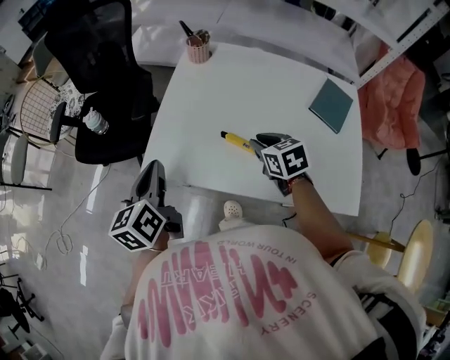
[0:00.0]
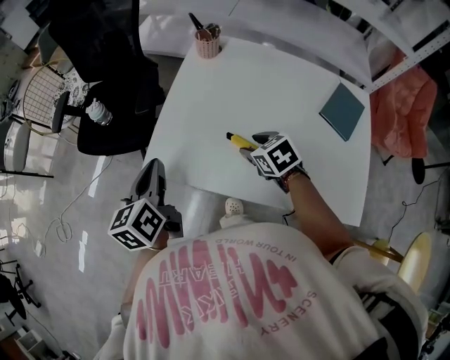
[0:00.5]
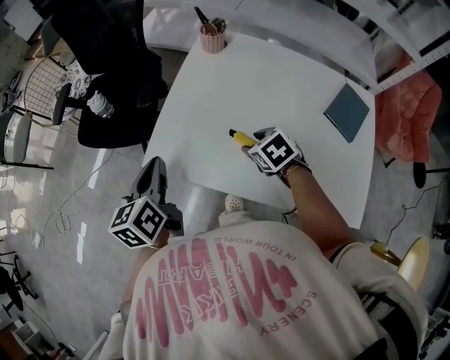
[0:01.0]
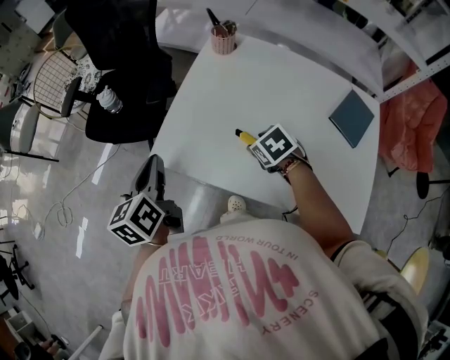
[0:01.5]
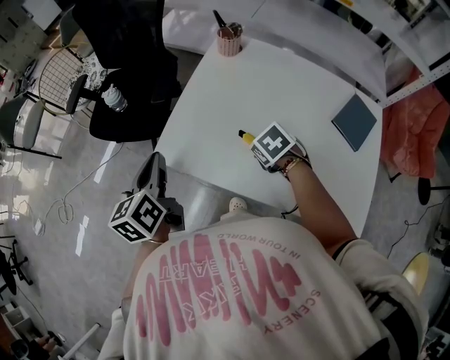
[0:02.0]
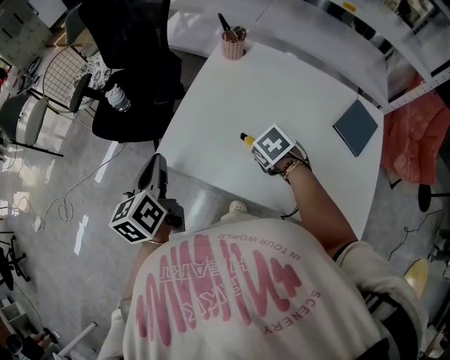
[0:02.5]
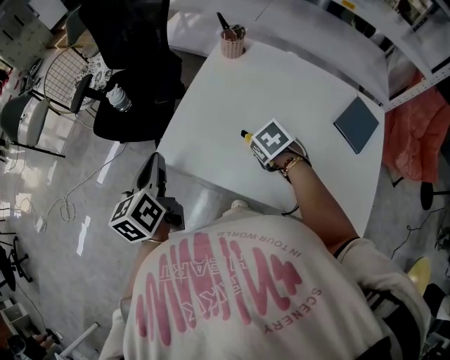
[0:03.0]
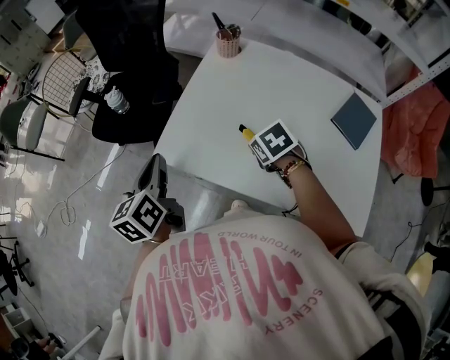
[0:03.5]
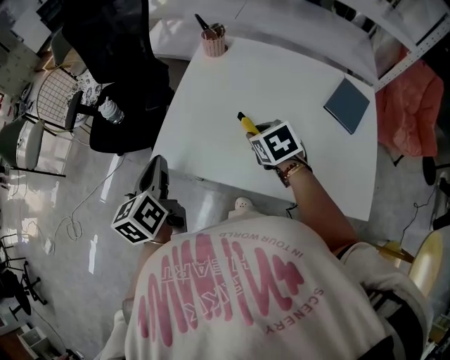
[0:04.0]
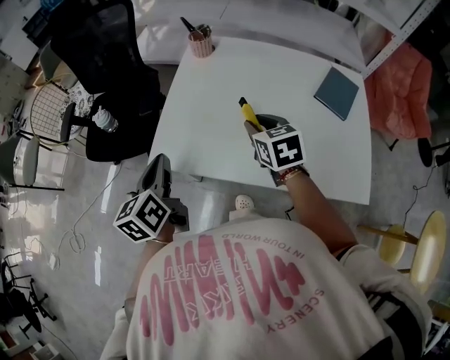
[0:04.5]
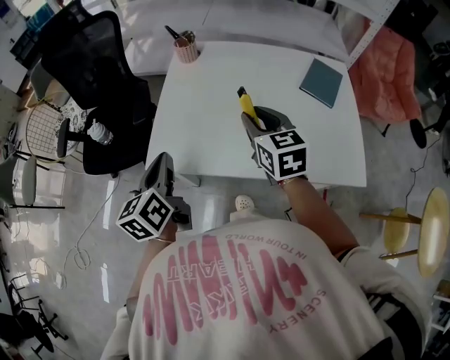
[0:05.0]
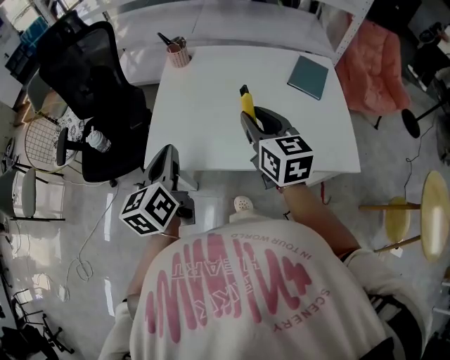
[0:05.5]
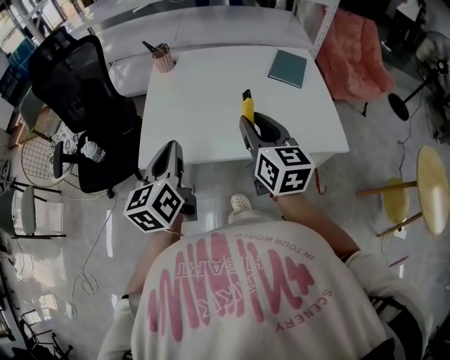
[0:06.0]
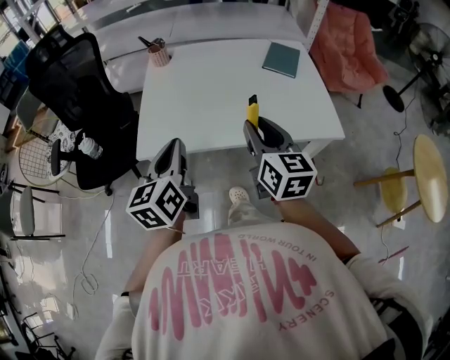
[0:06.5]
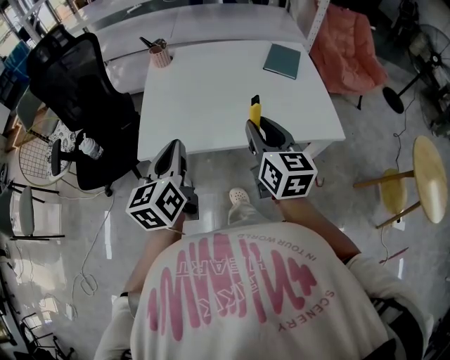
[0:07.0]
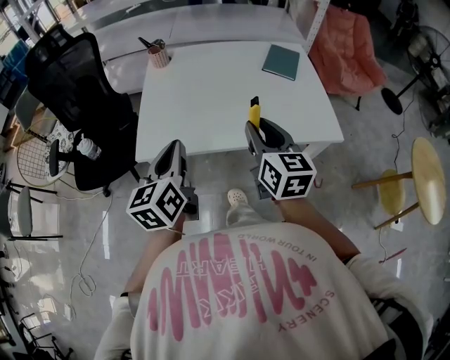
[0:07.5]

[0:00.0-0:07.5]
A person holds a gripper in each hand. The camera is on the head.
0:00.0 to 0:02.0: The right gripper goes roughly 5 cm downward, rotates some 30 degrees, and opens and closes again.
0:02.0 to 0:04.0: The right gripper travels upward by approximately 5 cm, and changes its angle by approximately 20 degrees.
0:04.0 to 0:05.5: The left gripper heads backward and to the right, covering roughly 10 cm, and changes its angle by about 20 degrees; the right gripper shifts about 20 cm upward and backward, and angles its fingers upward, by about 40 degrees.
0:05.5 to 0:07.5: The right gripper moves backward, approximately 15 cm; the left gripper shifts some 10 cm backward.

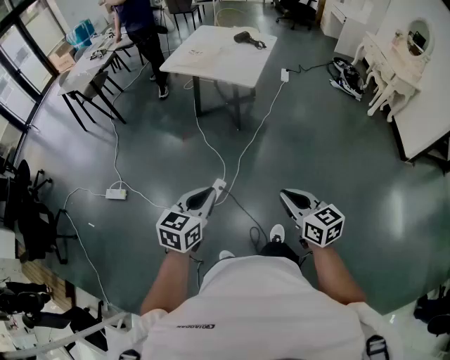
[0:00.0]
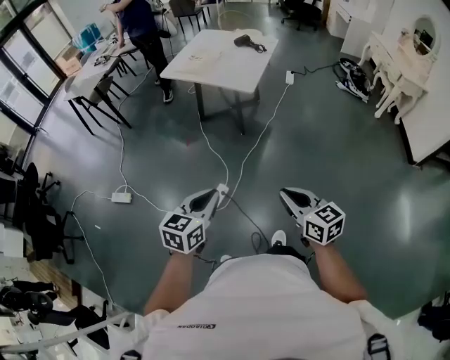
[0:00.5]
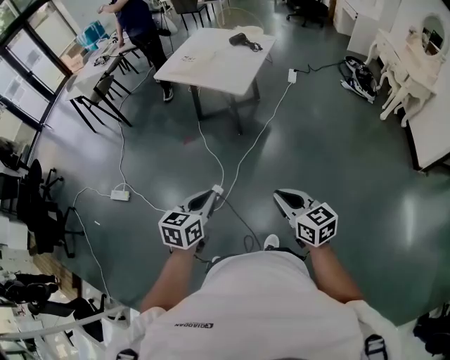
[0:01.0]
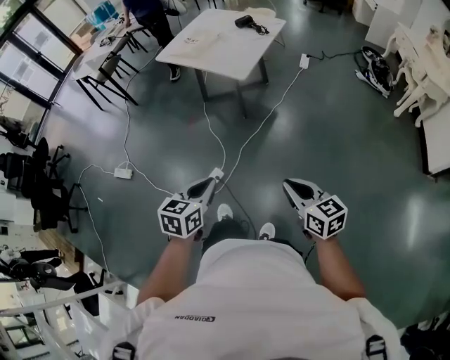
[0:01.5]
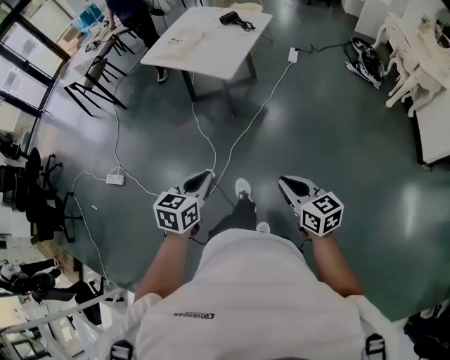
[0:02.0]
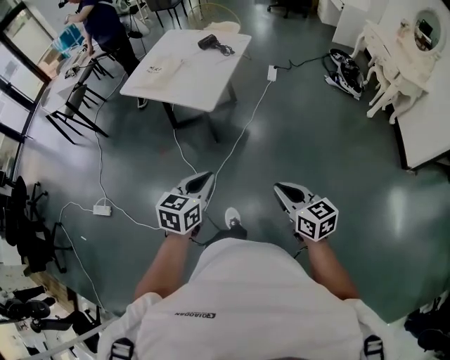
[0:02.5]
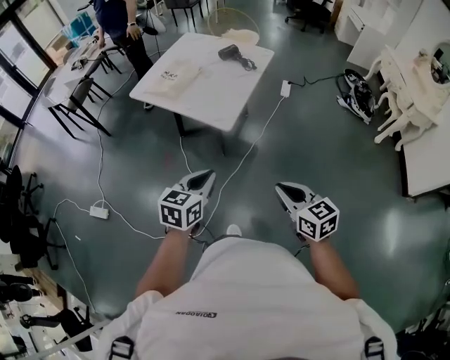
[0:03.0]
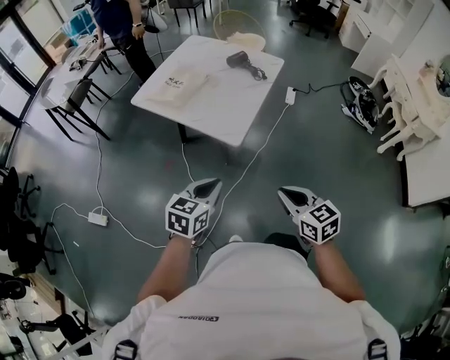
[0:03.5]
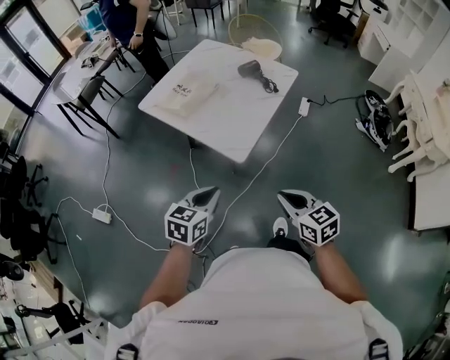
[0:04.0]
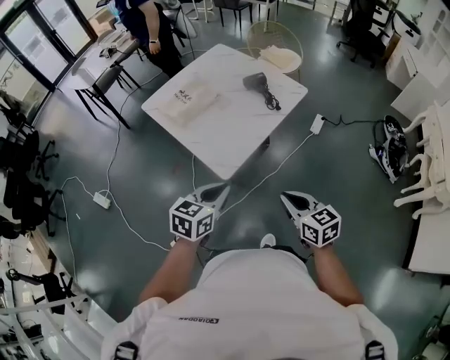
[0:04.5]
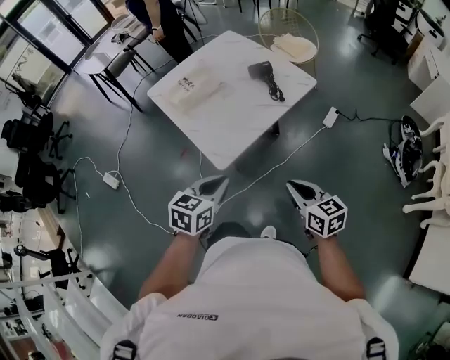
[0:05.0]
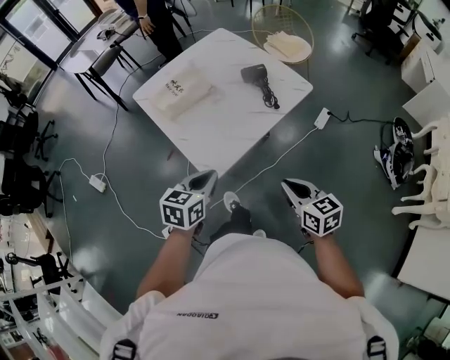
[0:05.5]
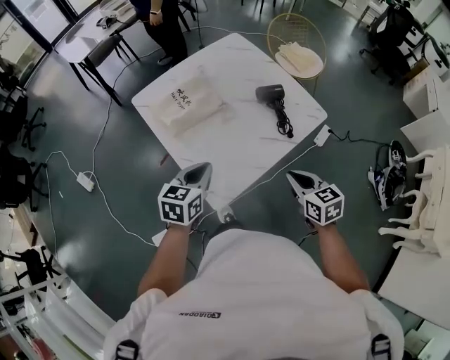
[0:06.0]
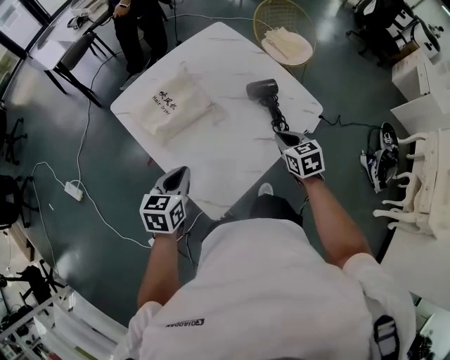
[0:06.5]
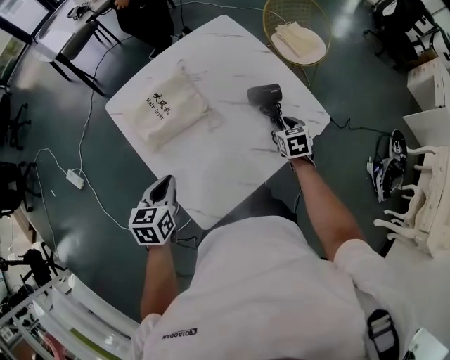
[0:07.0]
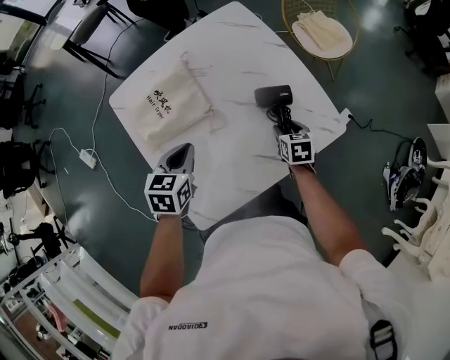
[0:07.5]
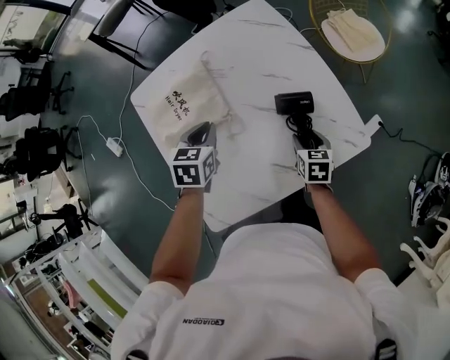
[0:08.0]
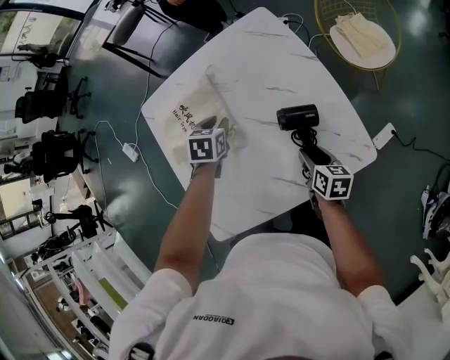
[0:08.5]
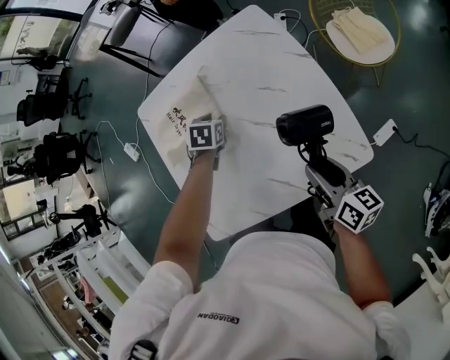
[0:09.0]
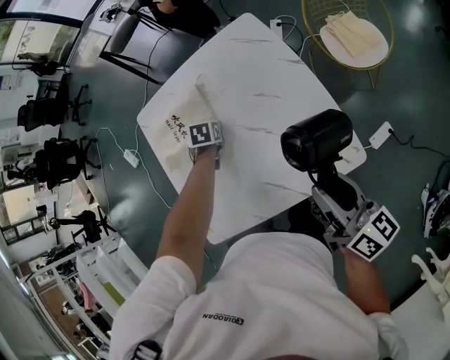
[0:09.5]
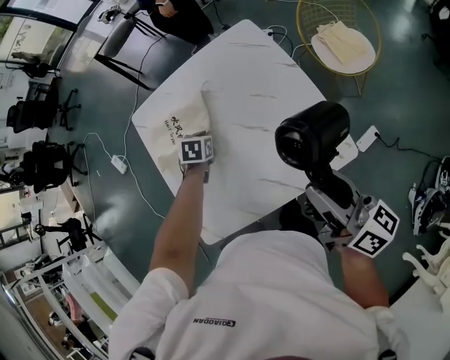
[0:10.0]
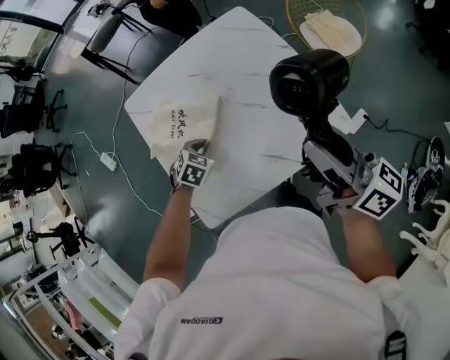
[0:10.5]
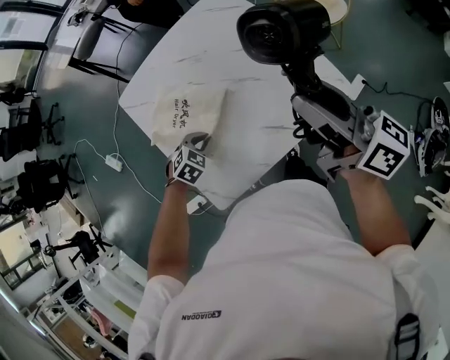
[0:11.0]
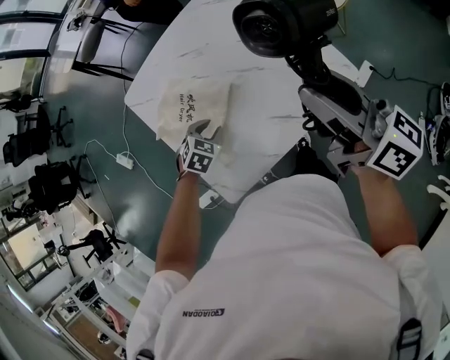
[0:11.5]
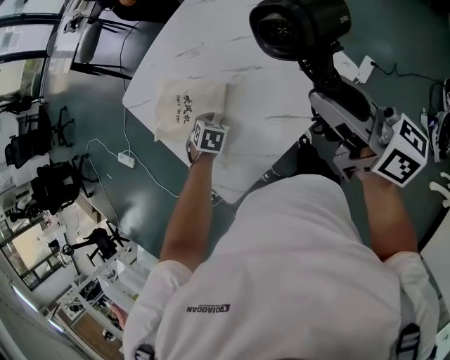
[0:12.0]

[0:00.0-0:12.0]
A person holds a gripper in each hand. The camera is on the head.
0:00.0 to 0:02.0: Both grippers travel together to the right and forward, about 30 cm.
0:02.0 to 0:04.0: Both grippers move forward, roughly 40 cm.
0:04.0 to 0:06.0: The right gripper goes some 40 cm forward and to the right. Meanwhile the left gripper shifts about 30 cm forward, and changes its angle by roughly 20 degrees.
0:06.0 to 0:08.0: The left gripper heads forward, covering about 30 cm, and swivels approximately 30 degrees. The right gripper shifts about 40 cm forward and downward, and opens its fingers.
0:08.0 to 0:10.0: The right gripper moves upward, roughly 30 cm, and tilts its fingers roughly 50 degrees upward, while the left gripper heads downward, covering some 10 cm, and opens and closes again.
0:10.0 to 0:12.0: The left gripper moves backward, about 10 cm, turns by about 30 degrees, and opens up.

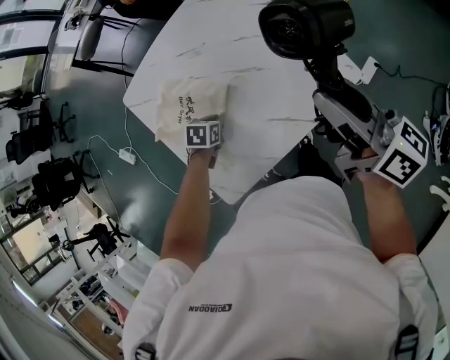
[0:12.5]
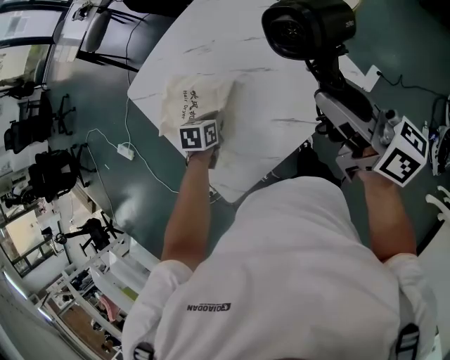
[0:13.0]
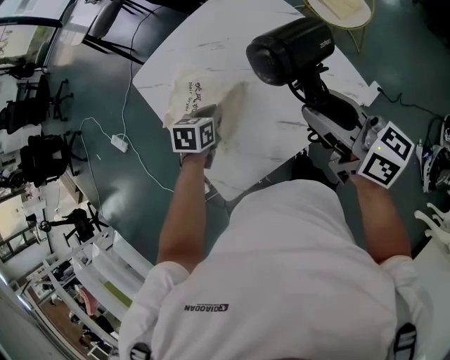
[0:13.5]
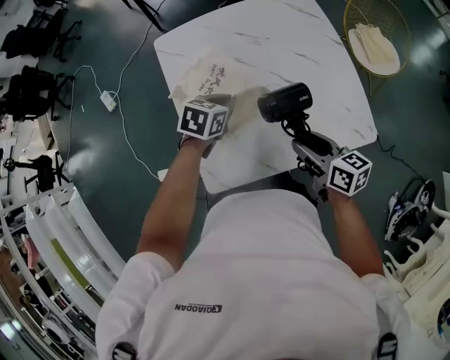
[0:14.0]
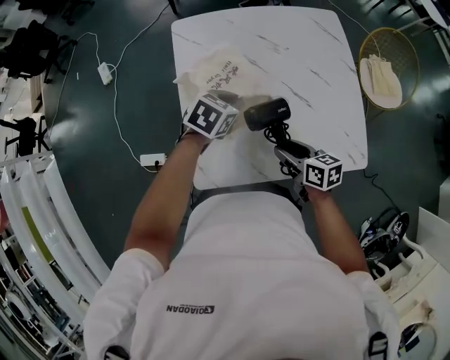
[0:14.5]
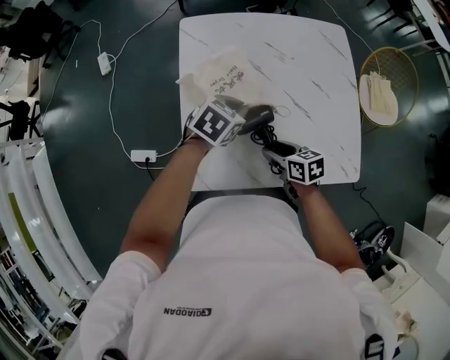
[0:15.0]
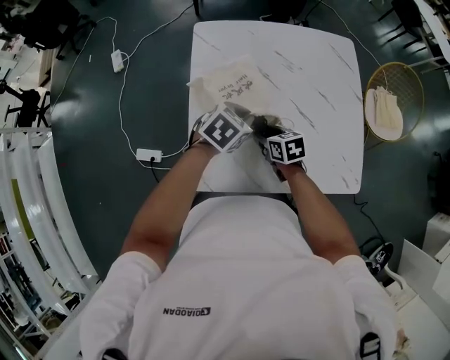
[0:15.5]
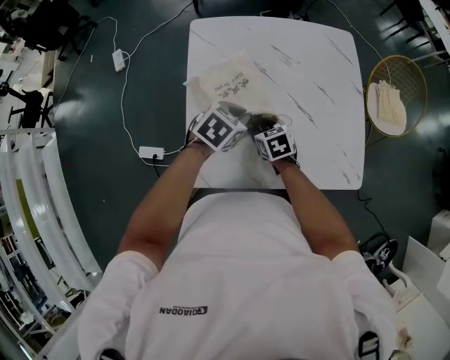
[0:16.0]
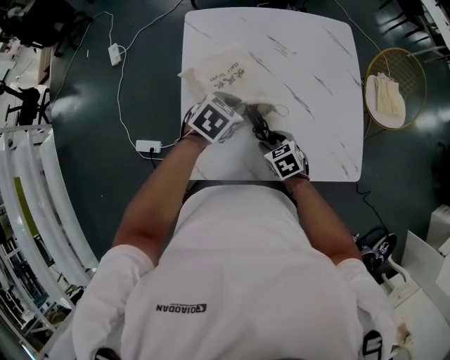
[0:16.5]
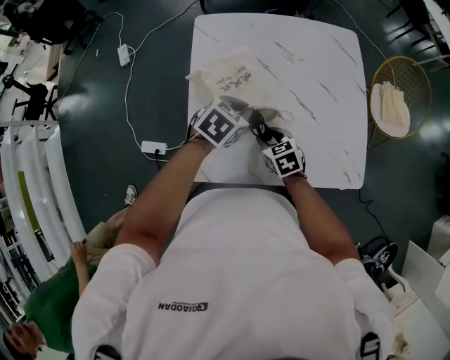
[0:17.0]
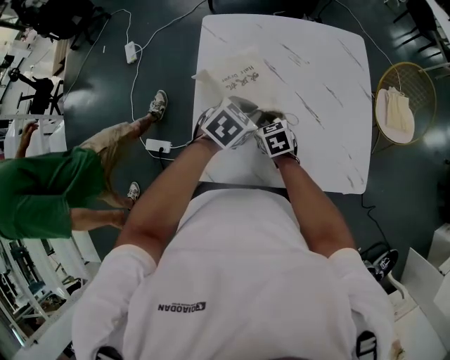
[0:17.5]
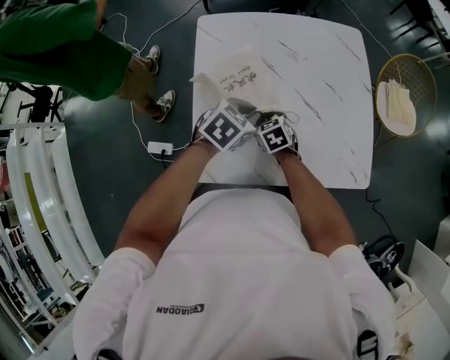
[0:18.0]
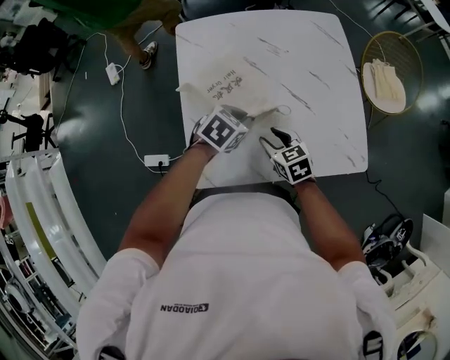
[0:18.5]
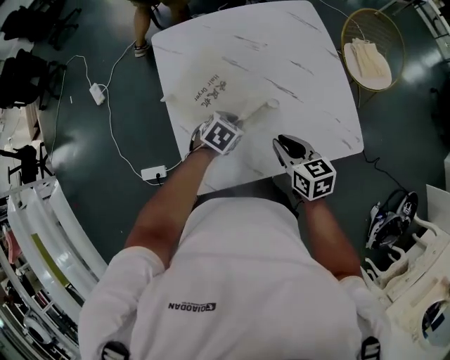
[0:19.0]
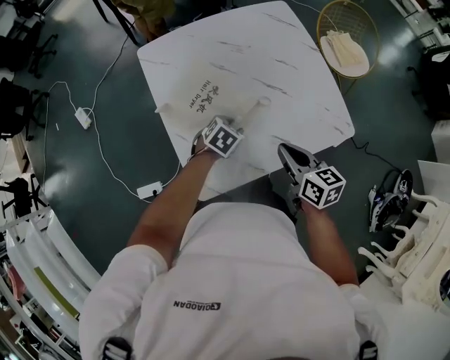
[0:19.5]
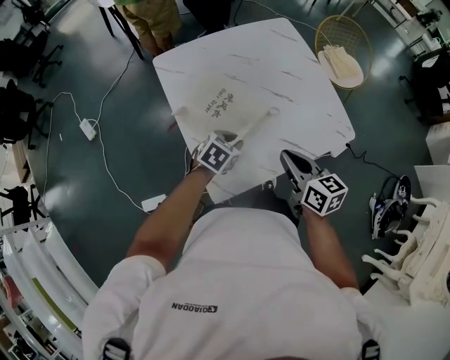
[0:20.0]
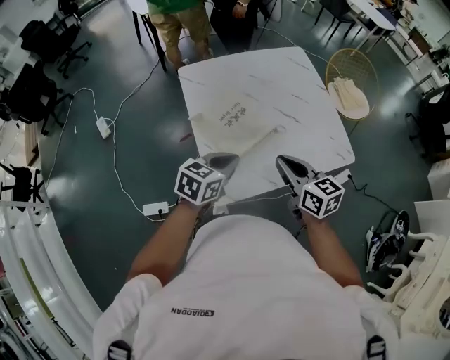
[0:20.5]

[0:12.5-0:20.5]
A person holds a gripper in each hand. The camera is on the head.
0:12.5 to 0:14.5: The left gripper heads upward and to the left, covering roughly 15 cm. The right gripper moves downward and to the left, some 30 cm, and tilts its fingers some 40 degrees downward.
0:14.5 to 0:16.5: The right gripper is displaced downward by some 10 cm, and changes its angle by some 40 degrees.
0:16.5 to 0:18.5: The right gripper goes roughly 5 cm upward, and reaches about 10 cm to the left, then returns.
0:18.5 to 0:20.5: The left gripper heads backward and upward, covering roughly 20 cm, swivels about 30 degrees, and opens, then closes once more; the right gripper travels upward and backward by some 25 cm, swivels roughly 30 degrees, and closes.
